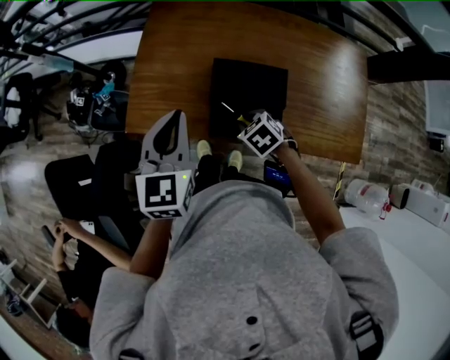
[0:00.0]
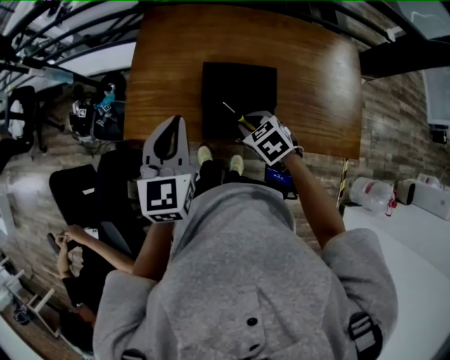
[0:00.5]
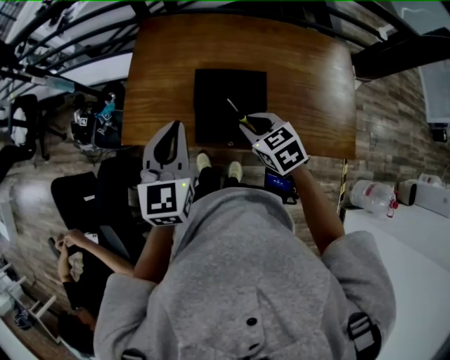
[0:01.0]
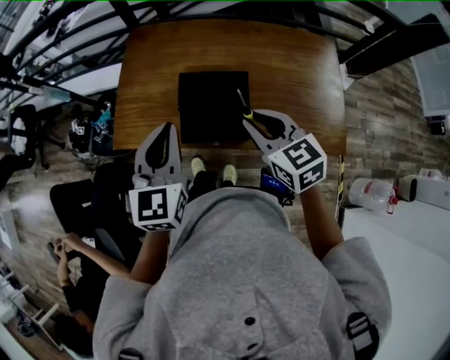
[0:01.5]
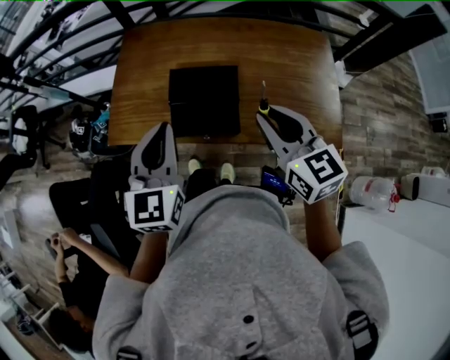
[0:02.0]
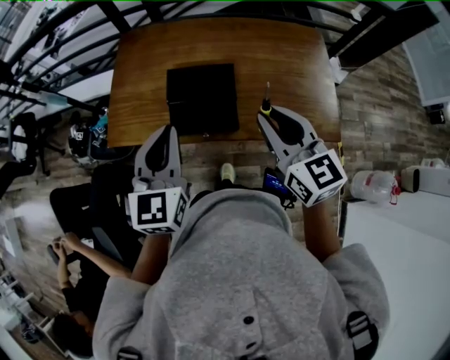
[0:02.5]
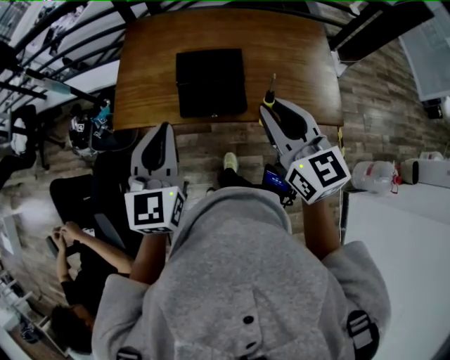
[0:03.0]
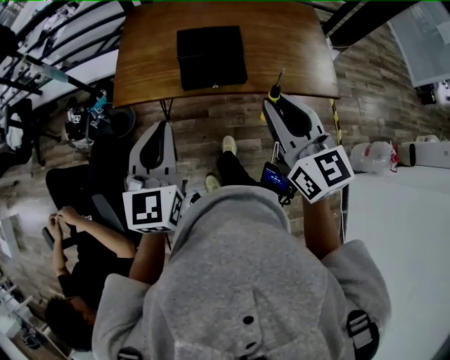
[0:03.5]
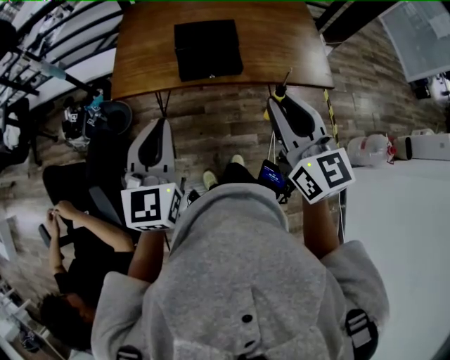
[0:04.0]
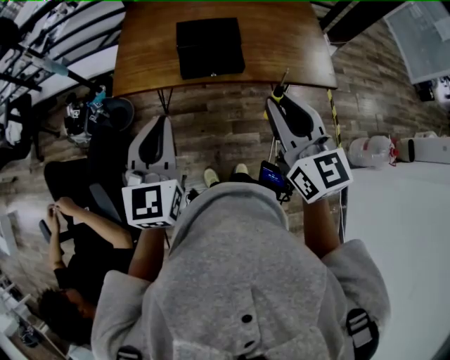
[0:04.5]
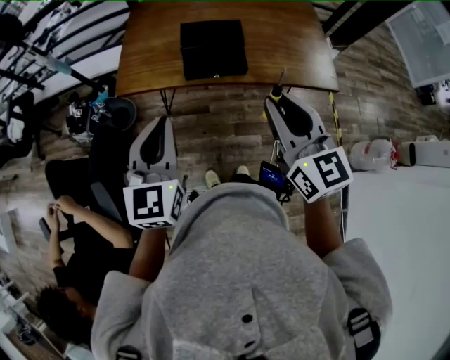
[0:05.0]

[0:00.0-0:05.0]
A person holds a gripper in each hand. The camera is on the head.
0:00.0 to 0:02.5: The left gripper goes approximately 20 cm backward, to the right and upward. Meanwhile the right gripper shifts approximately 35 cm upward, to the right and backward, and tips its fingers upward by approximately 60 degrees.
0:02.5 to 0:05.0: The two grippers go approximately 25 cm backward and to the left.

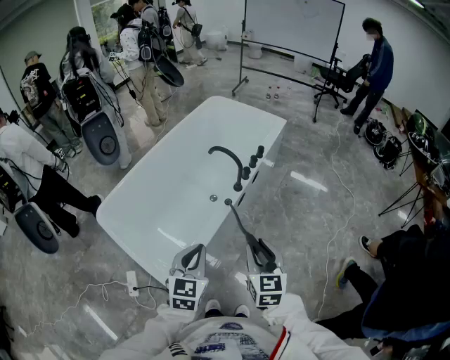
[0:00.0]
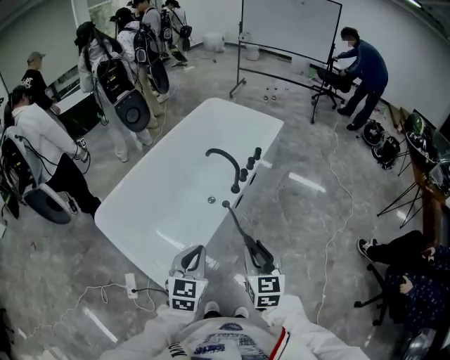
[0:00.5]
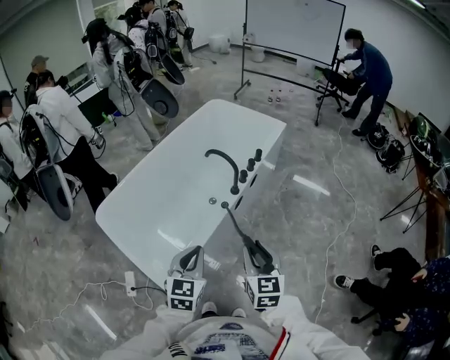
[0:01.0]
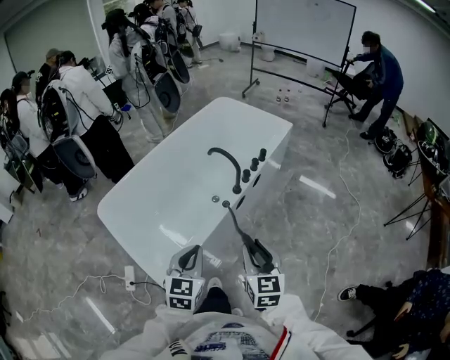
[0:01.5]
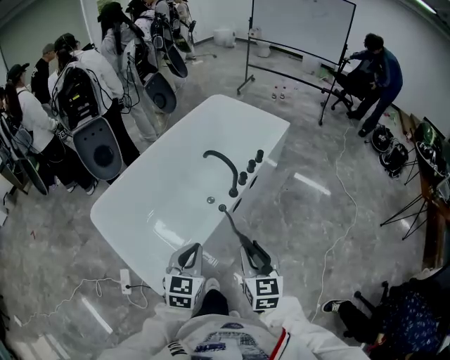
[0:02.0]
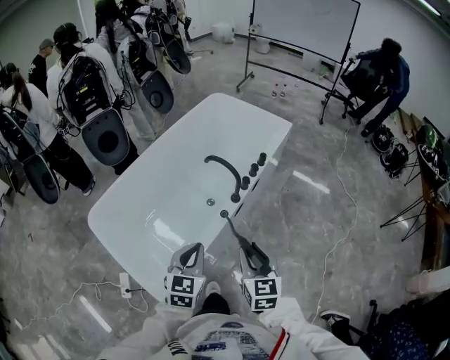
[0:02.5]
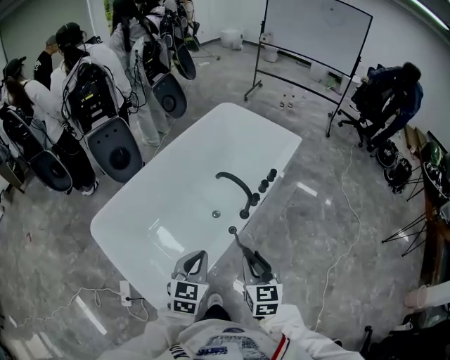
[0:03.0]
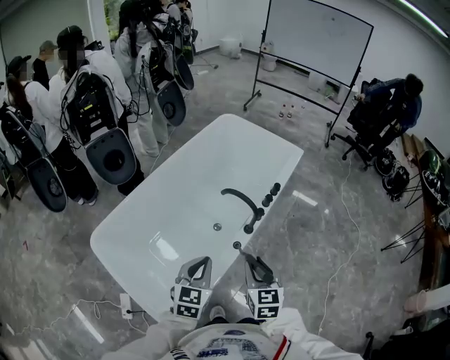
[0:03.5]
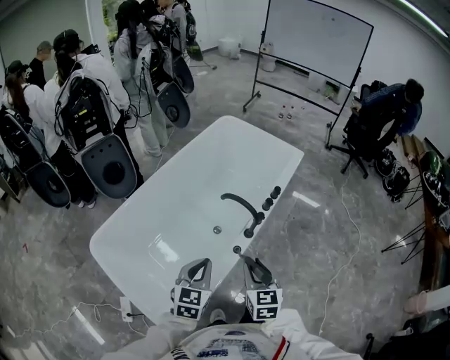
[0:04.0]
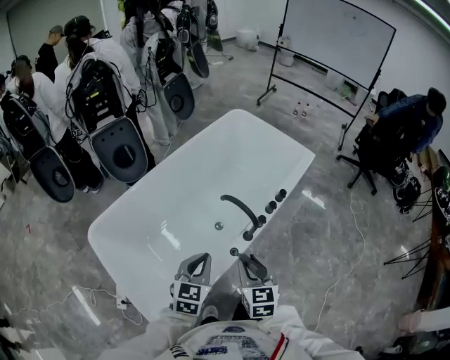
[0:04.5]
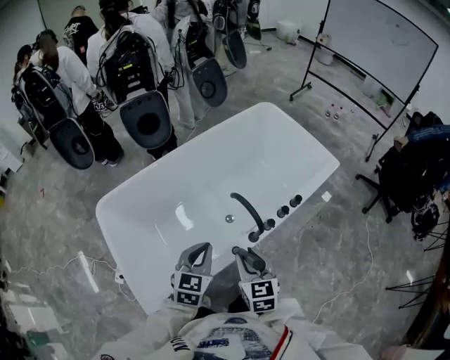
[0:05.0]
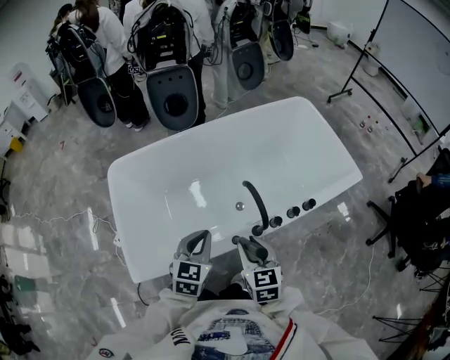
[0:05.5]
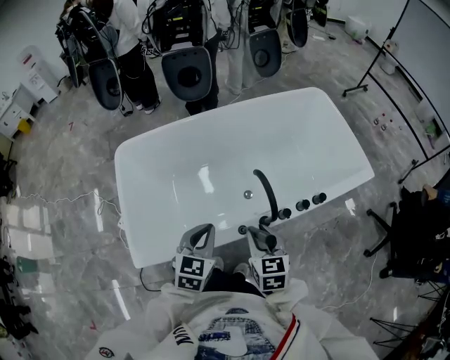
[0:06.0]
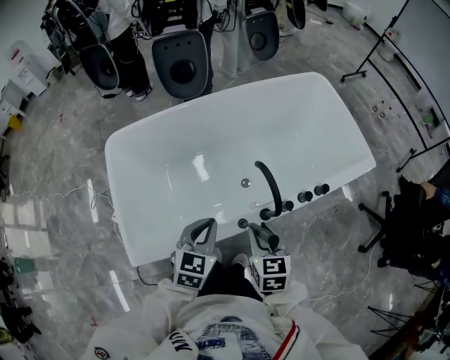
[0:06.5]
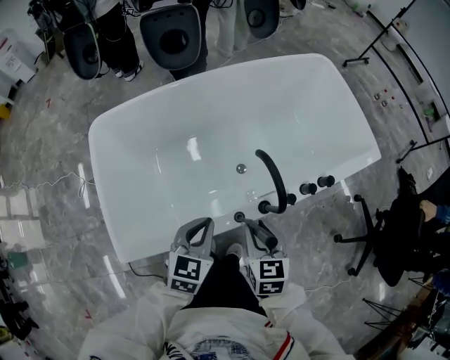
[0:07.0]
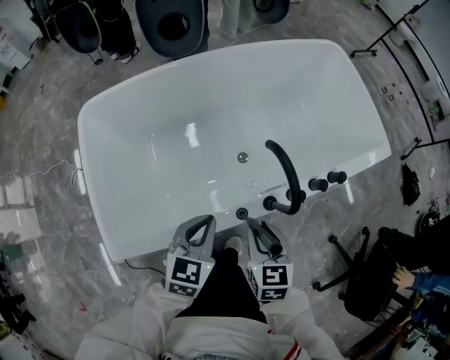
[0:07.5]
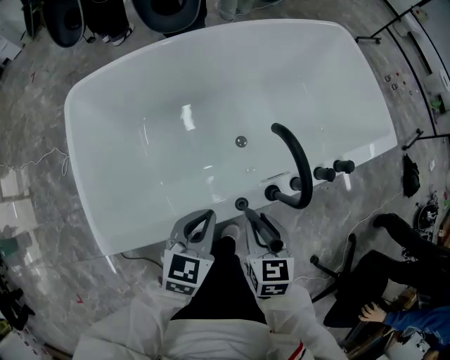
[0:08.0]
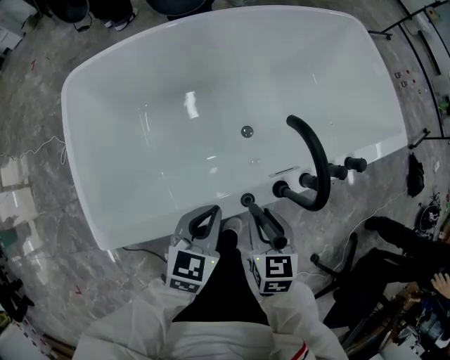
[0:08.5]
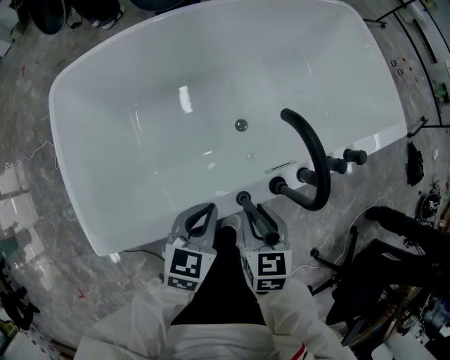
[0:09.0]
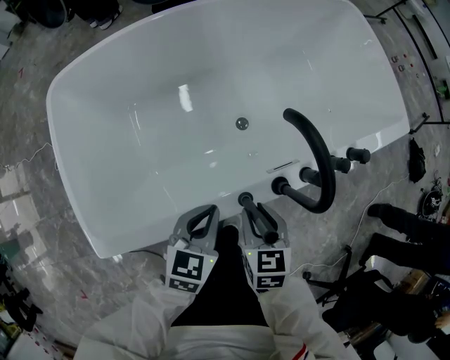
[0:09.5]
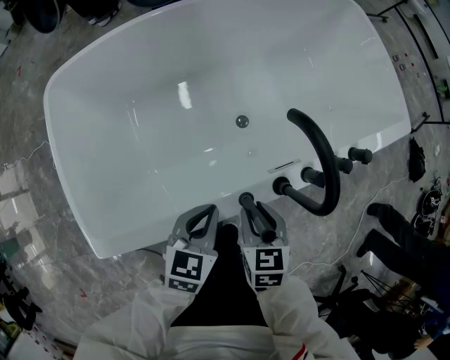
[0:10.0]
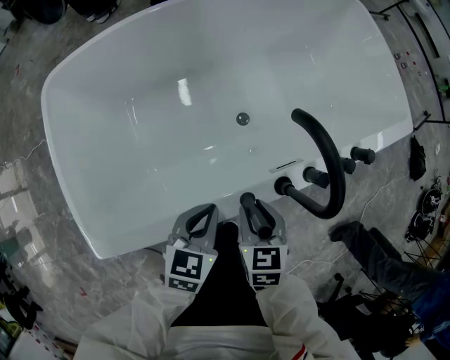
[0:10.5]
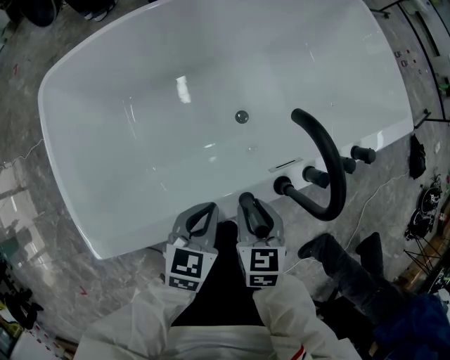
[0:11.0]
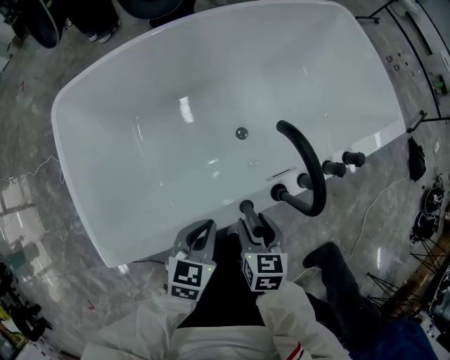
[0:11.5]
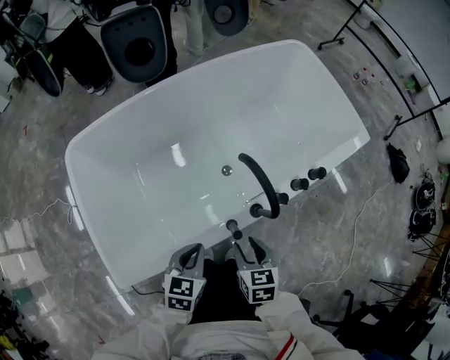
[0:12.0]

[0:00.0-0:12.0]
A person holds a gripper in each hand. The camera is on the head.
0:00.0 to 0:02.0: The left gripper shifts approximately 5 cm forward. Meanwhile the right gripper shifts by approximately 5 cm.
0:02.0 to 0:04.0: The two grippers go approximately 15 cm forward and to the left.
0:04.0 to 0:06.0: The right gripper shifts by some 15 cm, and turns by some 40 degrees. The left gripper ends up approximately 10 cm from where it was, and changes its angle by roughly 40 degrees.
0:06.0 to 0:08.0: The grippers both shift downward by approximately 15 cm.
0:08.0 to 0:10.0: Both grippers travel together downward, roughly 5 cm.
0:10.0 to 0:12.0: The grippers both shift upward by approximately 10 cm.

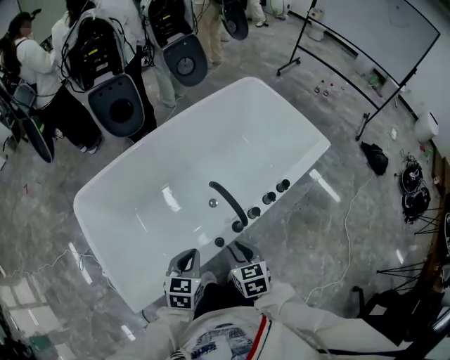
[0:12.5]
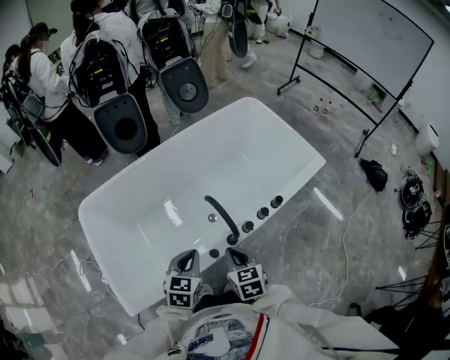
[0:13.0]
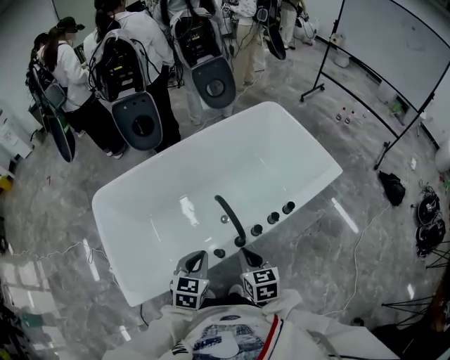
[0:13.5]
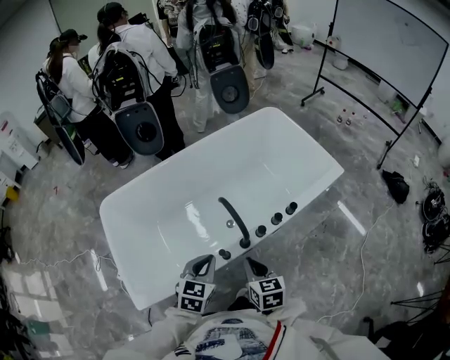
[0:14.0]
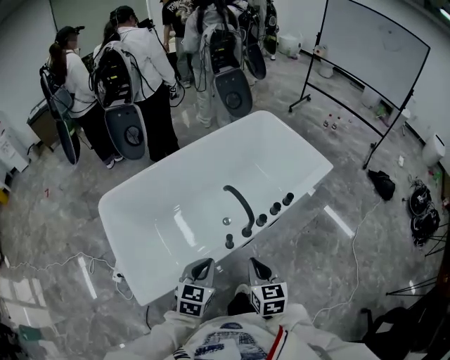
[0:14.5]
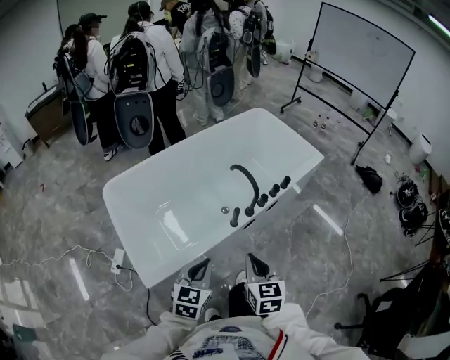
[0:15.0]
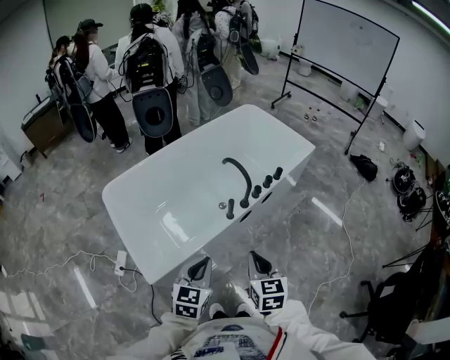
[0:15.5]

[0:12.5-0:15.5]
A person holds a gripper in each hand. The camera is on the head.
0:12.5 to 0:14.0: The grippers both shift upward and to the right by some 10 cm. The right gripper closes up.
0:14.0 to 0:15.5: The two grippers go some 25 cm backward.

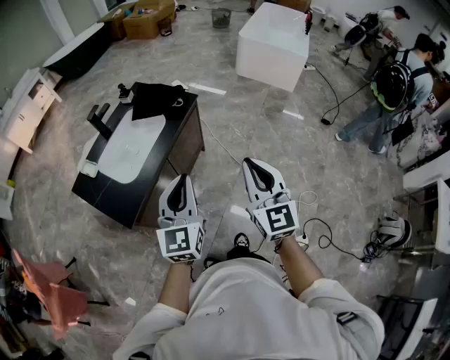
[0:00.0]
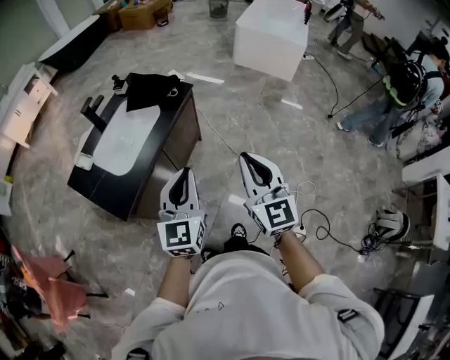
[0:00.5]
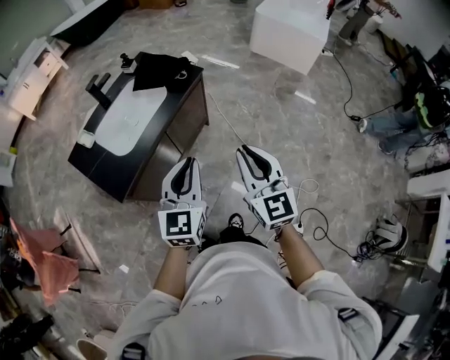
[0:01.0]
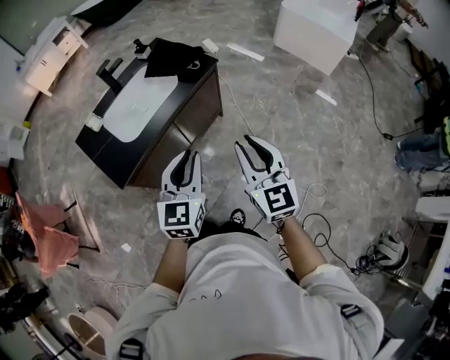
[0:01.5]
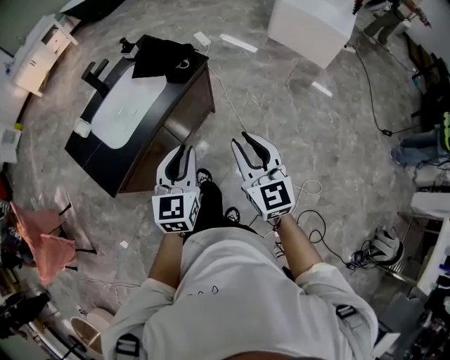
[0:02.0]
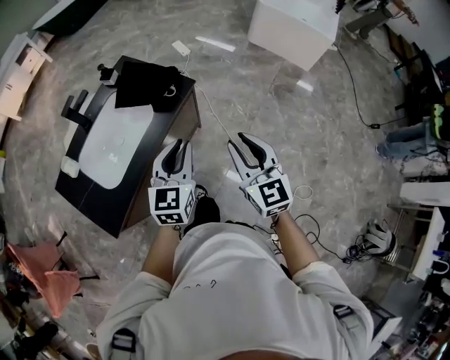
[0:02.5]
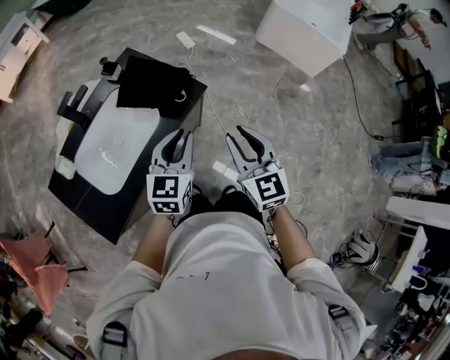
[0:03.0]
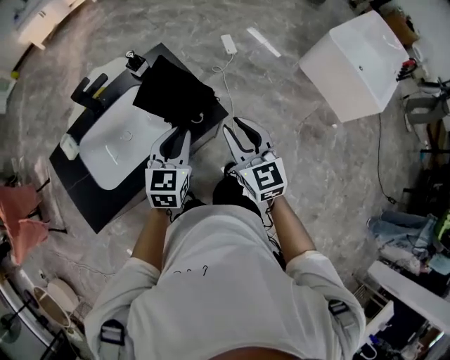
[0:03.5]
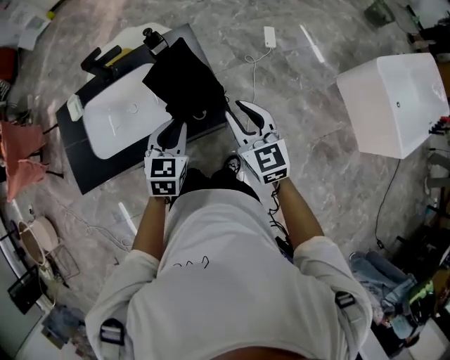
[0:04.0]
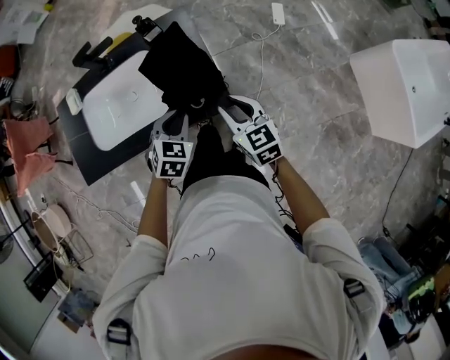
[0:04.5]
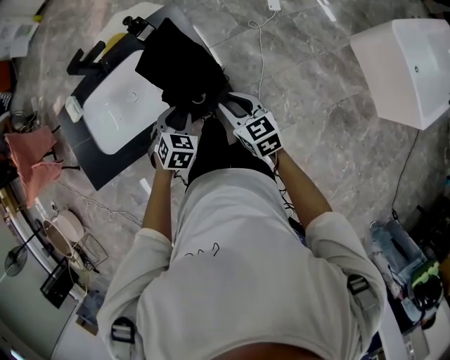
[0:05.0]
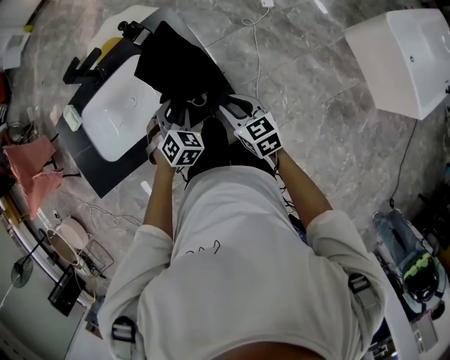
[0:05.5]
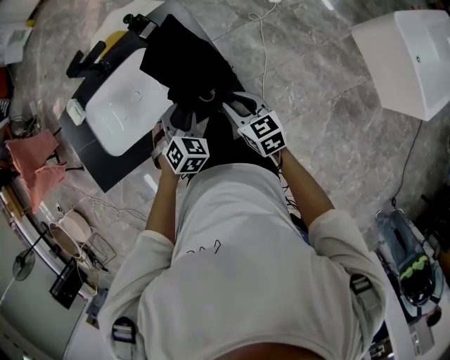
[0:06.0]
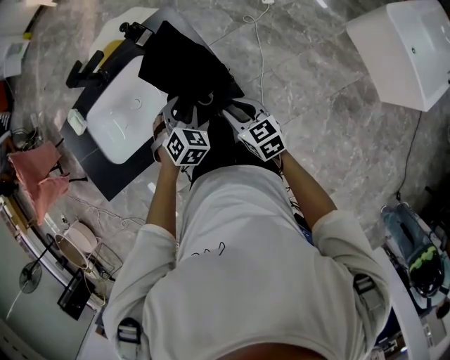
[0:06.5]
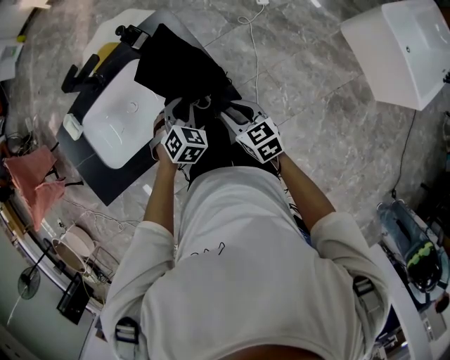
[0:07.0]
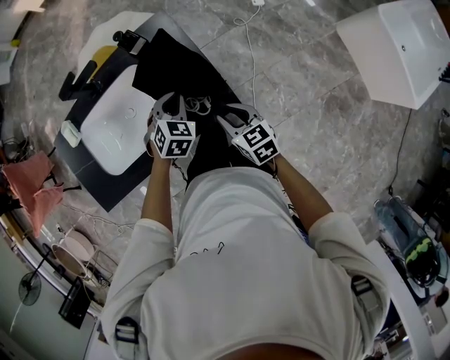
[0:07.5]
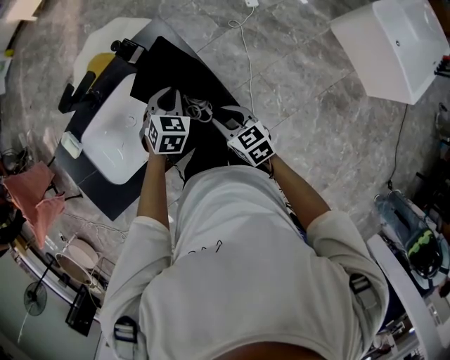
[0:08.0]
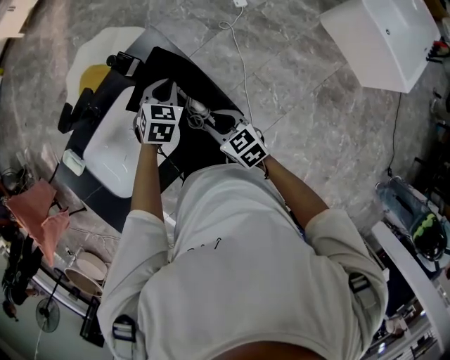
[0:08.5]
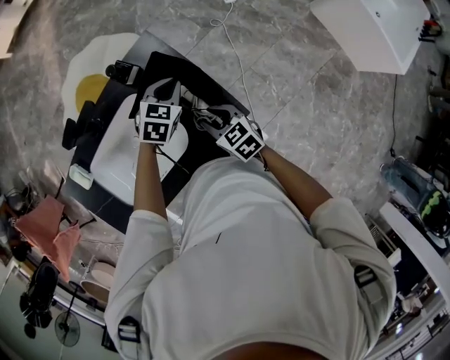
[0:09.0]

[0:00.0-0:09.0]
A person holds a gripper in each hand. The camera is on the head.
0:00.0 to 0:02.0: The right gripper shifts roughly 15 cm forward, downward and to the right; the left gripper is displaced forward, to the right and downward by roughly 15 cm.
0:02.0 to 0:04.5: Both grippers are carried approximately 50 cm. The left gripper tips its fingers downward by approximately 40 degrees. Meanwhile the right gripper rotates some 50 degrees.
0:04.5 to 0:07.0: The right gripper goes roughly 5 cm downward. The left gripper goes some 10 cm forward and downward, rotates roughly 20 degrees, and opens, then closes again.
0:07.0 to 0:09.0: The right gripper goes approximately 10 cm forward and to the left. Meanwhile the left gripper travels forward by some 15 cm, and changes its angle by approximately 30 degrees.
